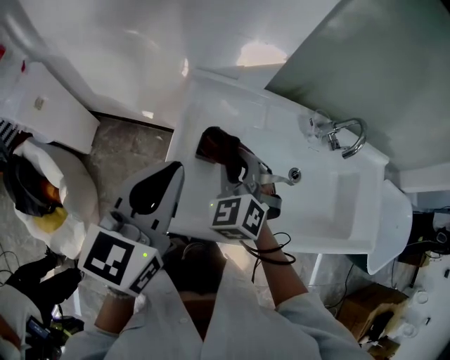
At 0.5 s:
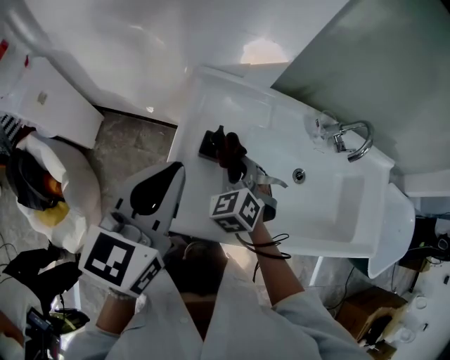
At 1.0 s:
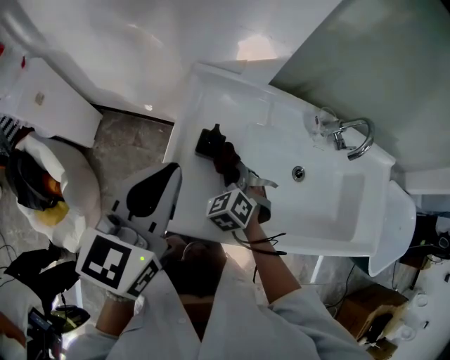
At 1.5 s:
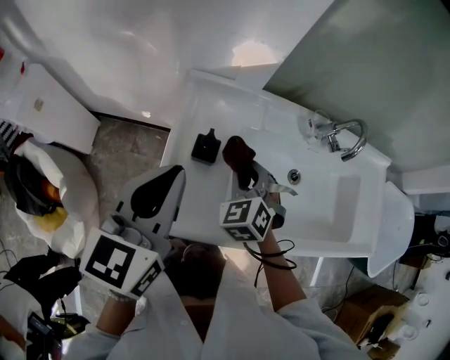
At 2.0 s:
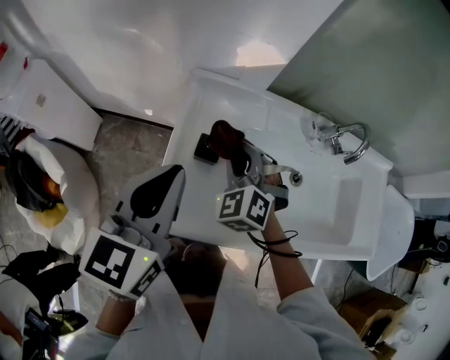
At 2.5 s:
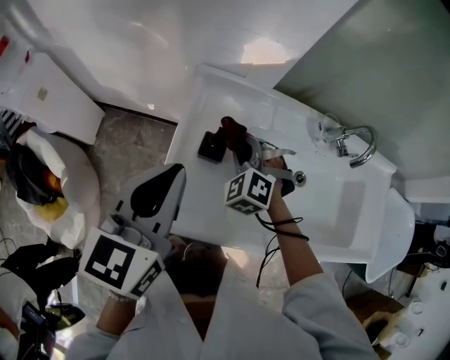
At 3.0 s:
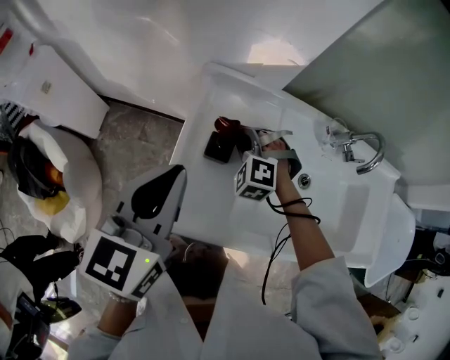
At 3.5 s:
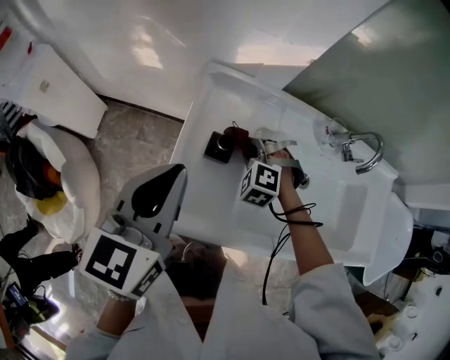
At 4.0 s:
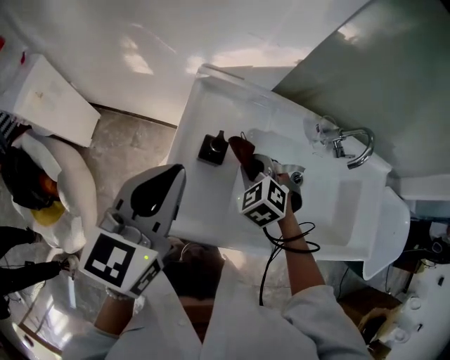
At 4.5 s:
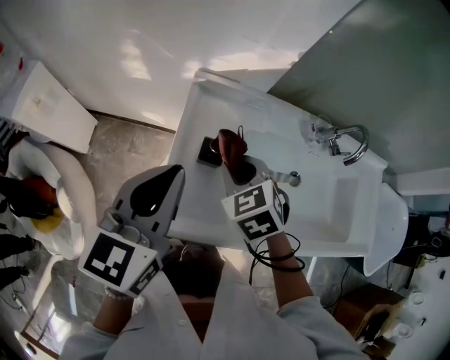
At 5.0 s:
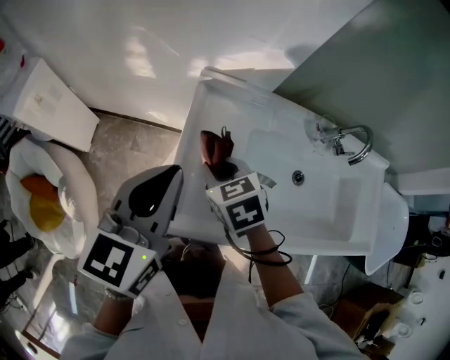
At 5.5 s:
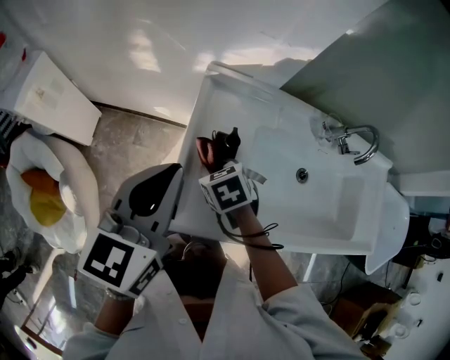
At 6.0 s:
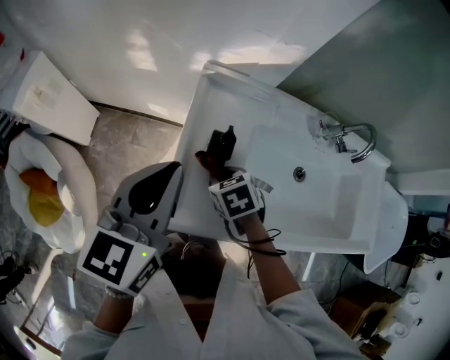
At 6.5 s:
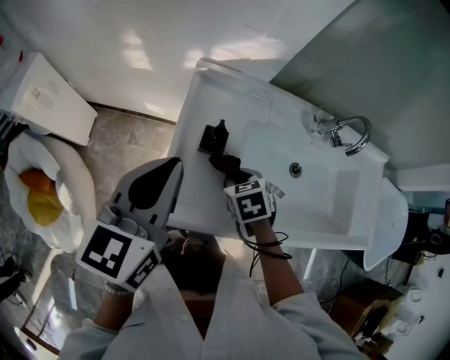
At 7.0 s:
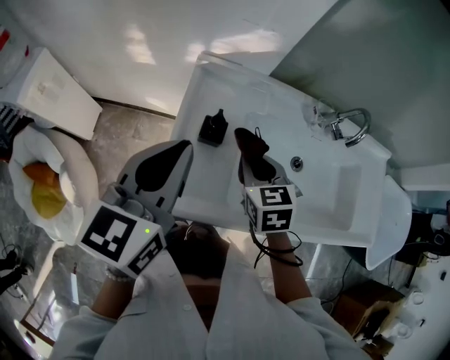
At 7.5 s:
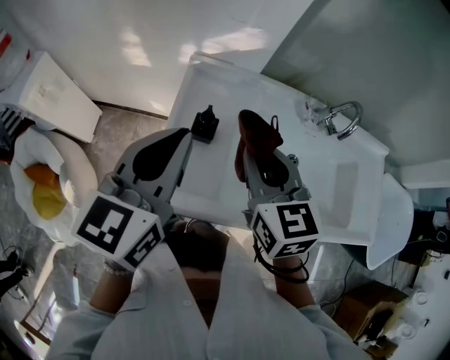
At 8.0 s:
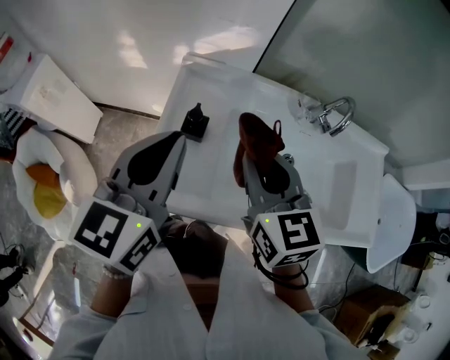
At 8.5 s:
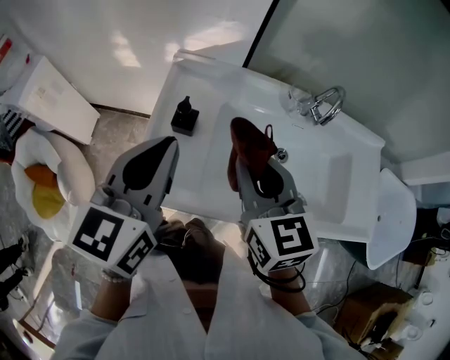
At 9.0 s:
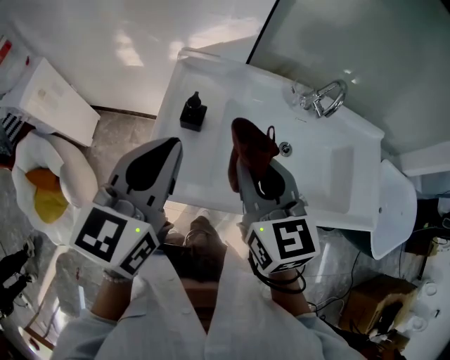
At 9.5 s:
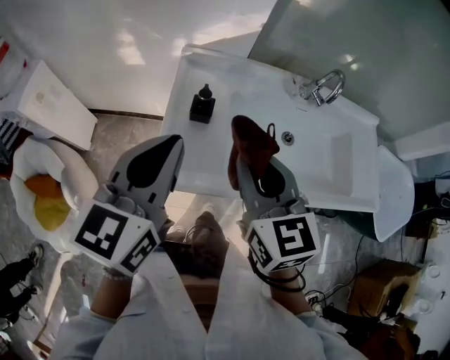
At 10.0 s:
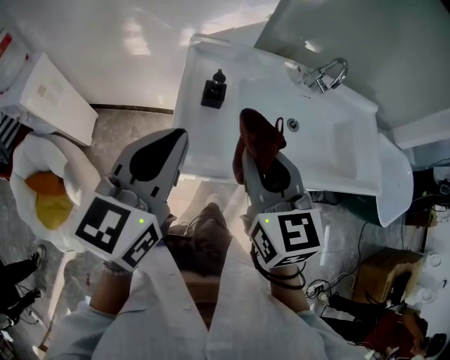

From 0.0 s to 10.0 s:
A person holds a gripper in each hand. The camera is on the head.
From 0.0 s to 2.0 s: The right gripper reaches approximately 15 cm downward, then returns.
From 2.0 s to 4.0 s: The right gripper travels downward by about 5 cm, and swivels about 20 degrees.
From 4.0 s to 6.0 s: The right gripper moves to the left, roughly 10 cm, and changes its angle by approximately 40 degrees.
From 6.0 s to 8.0 s: The left gripper travels to the right by approximately 10 cm. The right gripper moves upward and to the right, about 30 cm, and angles its fingers upward, by some 40 degrees.
From 8.0 s to 10.0 s: The grippers both shift backward and to the left by about 15 cm.

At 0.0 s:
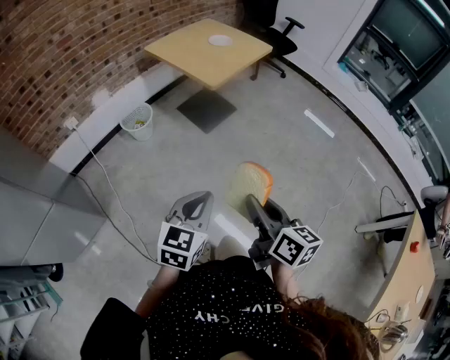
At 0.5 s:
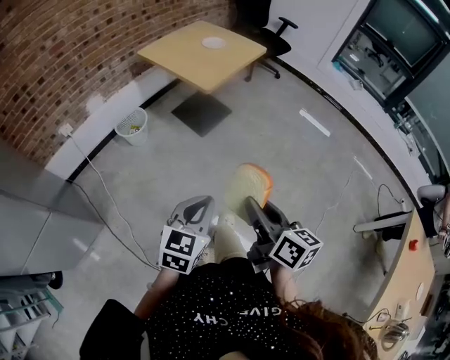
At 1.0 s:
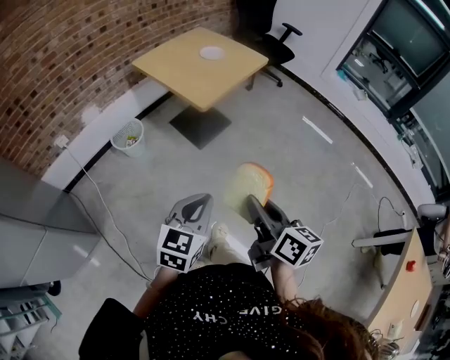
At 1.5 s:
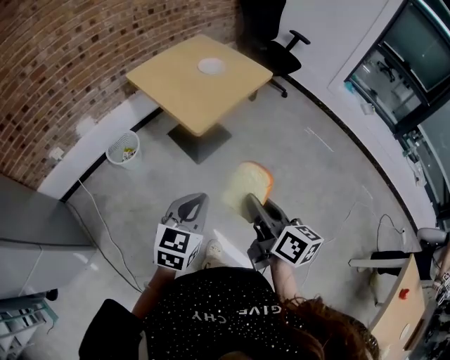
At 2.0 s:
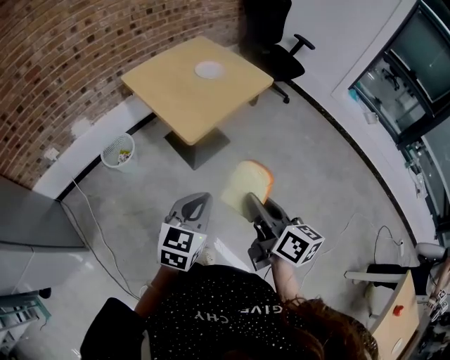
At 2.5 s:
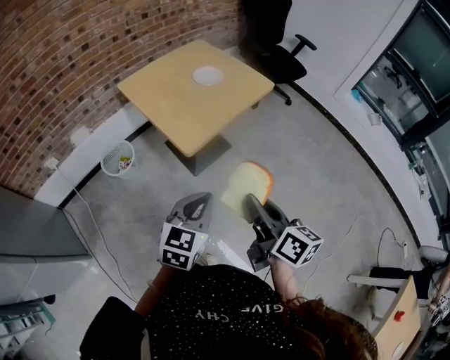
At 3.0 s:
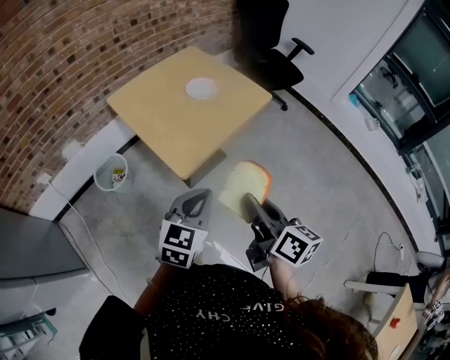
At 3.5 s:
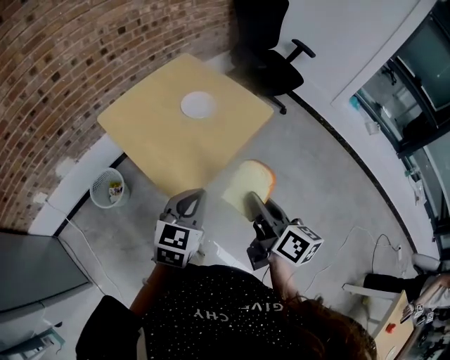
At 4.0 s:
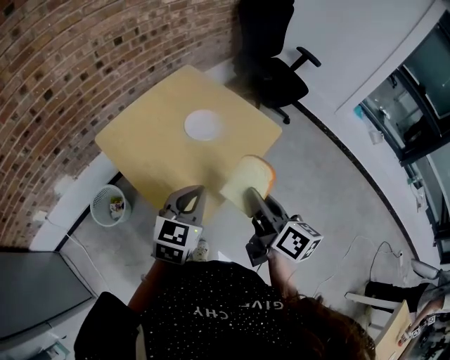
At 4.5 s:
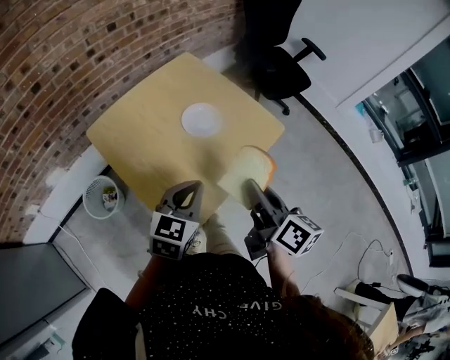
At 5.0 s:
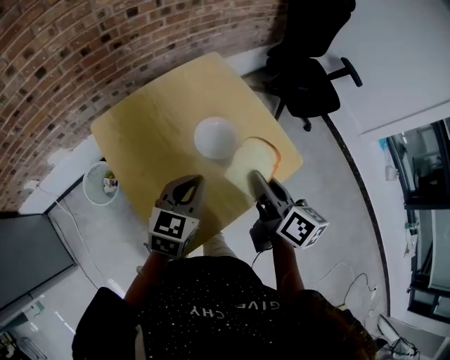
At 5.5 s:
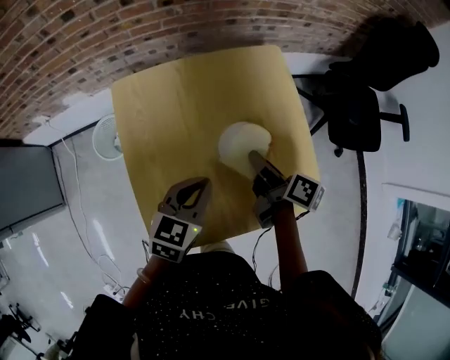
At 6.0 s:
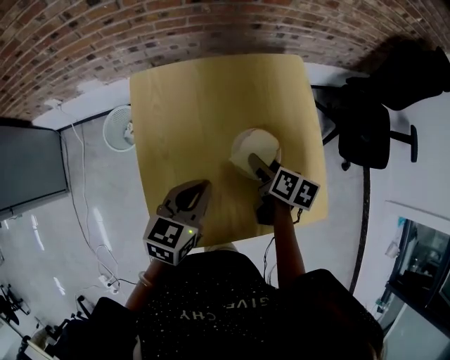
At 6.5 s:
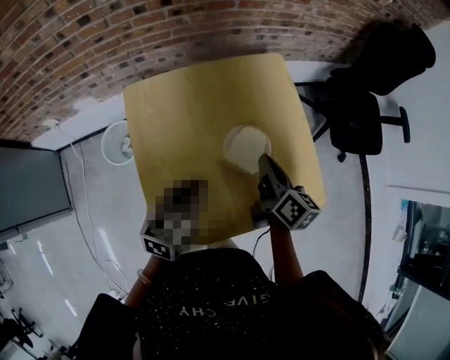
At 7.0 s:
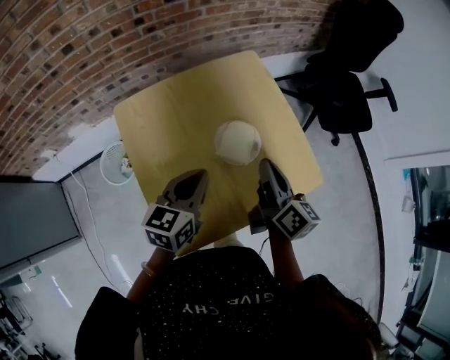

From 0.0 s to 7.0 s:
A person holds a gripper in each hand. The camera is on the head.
From 0.0 s to 2.0 s: The two grippers go some 35 cm forward.
From 2.0 s to 3.5 s: The two grippers go some 30 cm forward.
From 3.5 s to 5.0 s: Both grippers travel together forward, approximately 30 cm.
From 5.0 s to 7.0 s: The right gripper is displaced forward by approximately 5 cm, moves some 20 cm downward and comes back, and opens and closes again.

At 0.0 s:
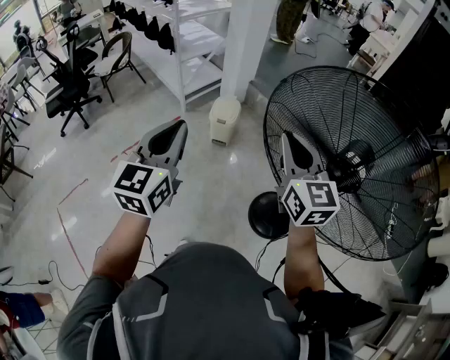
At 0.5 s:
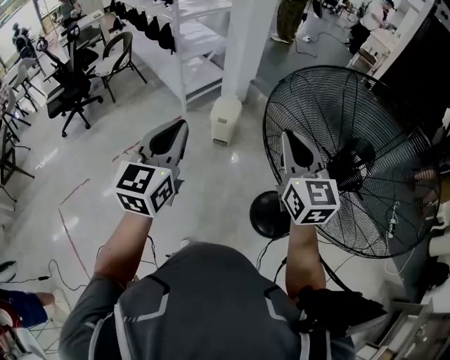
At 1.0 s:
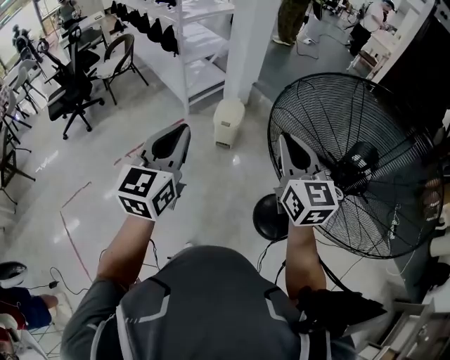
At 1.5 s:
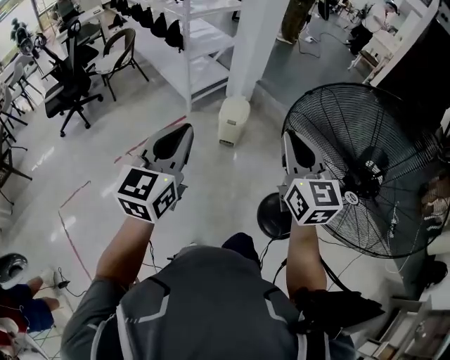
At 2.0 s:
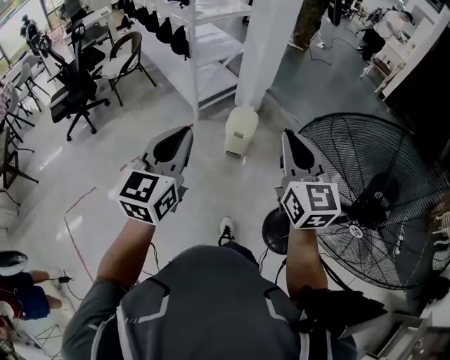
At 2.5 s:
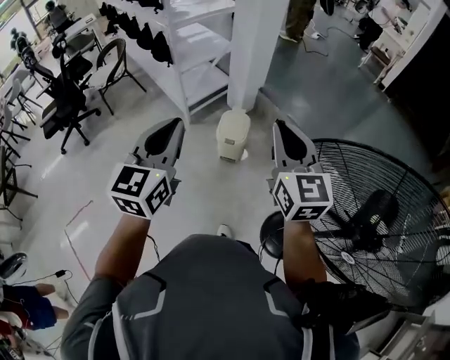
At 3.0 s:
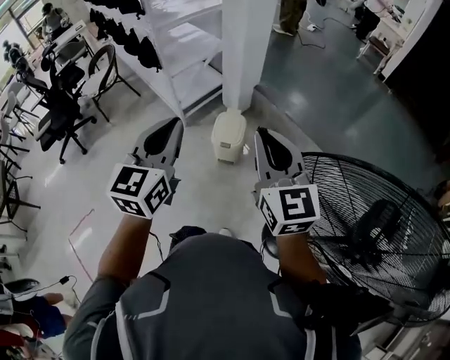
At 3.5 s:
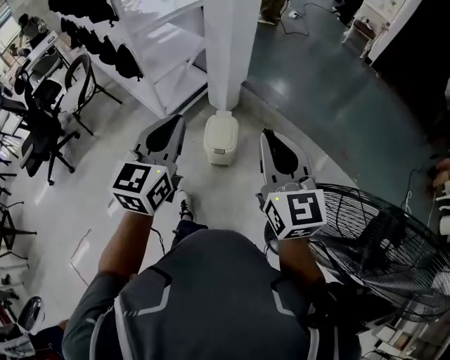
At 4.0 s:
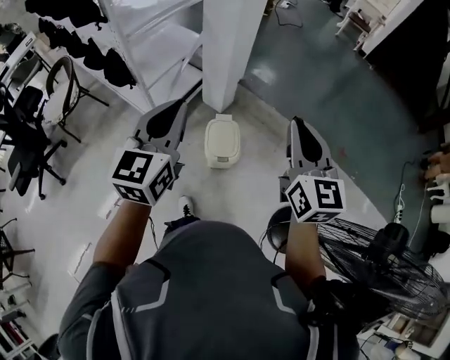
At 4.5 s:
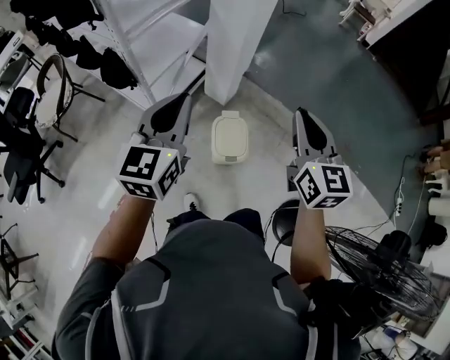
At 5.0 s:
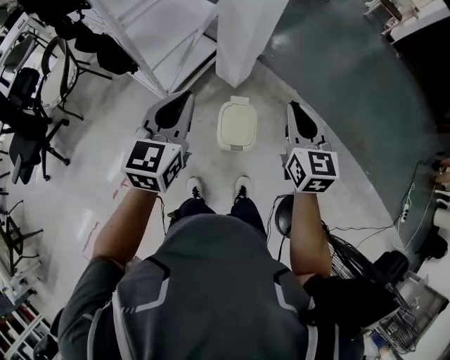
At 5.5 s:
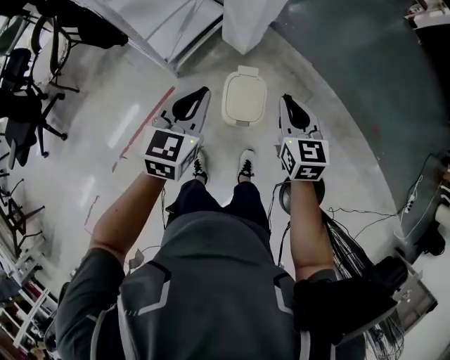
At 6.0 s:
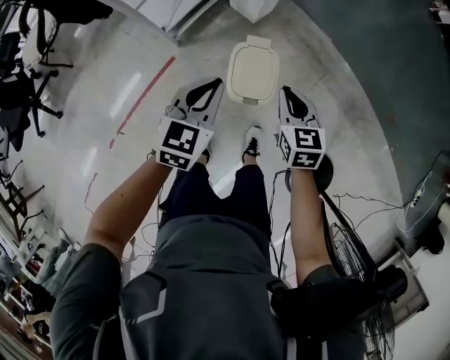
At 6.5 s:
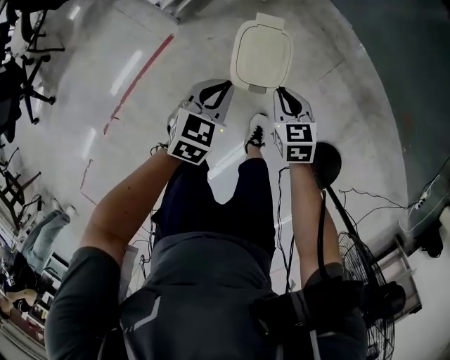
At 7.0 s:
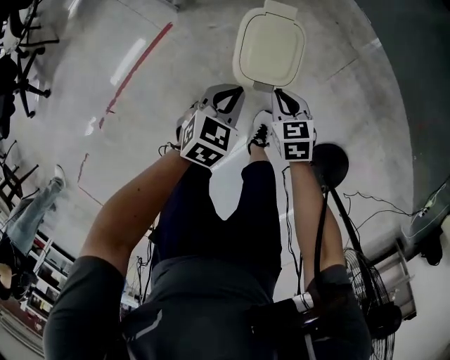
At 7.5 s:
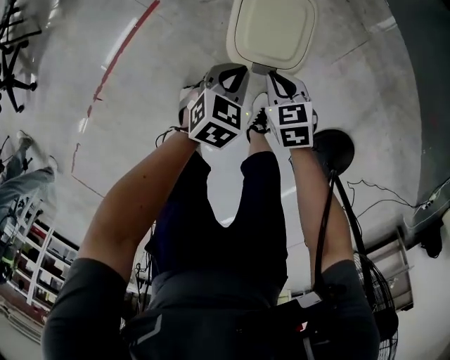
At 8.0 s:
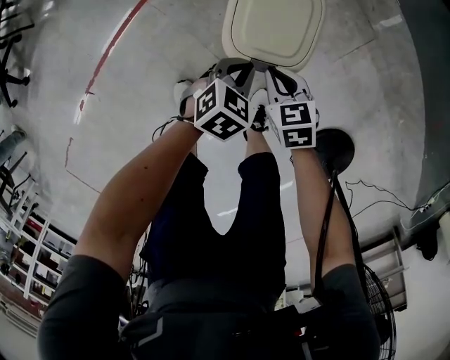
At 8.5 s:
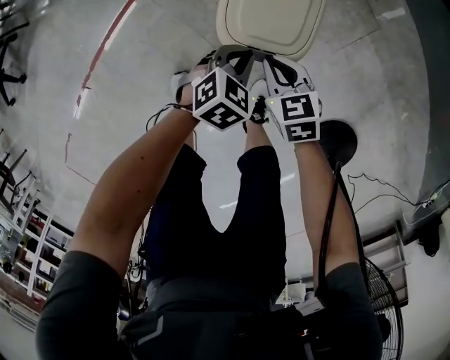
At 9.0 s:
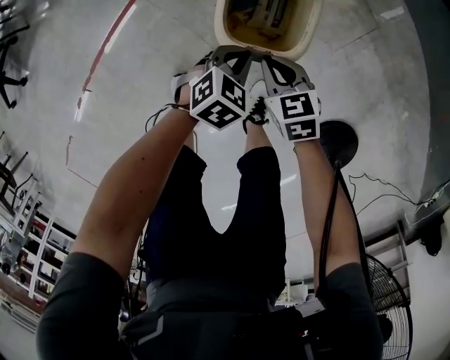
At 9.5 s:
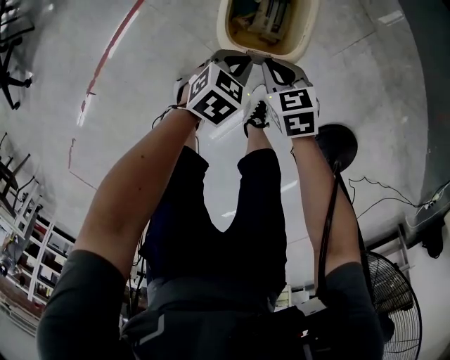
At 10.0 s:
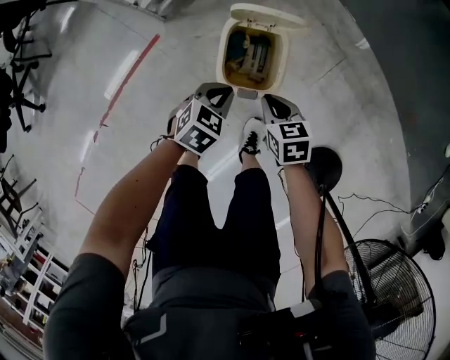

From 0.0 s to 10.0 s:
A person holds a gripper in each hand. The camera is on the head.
From 0.0 s to 2.0 s: The two grippers go roughly 15 cm forward and to the left.
From 2.0 s to 4.0 s: The pair of grippers is taken forward, some 40 cm.
From 4.0 s to 6.0 s: The grippers both shift downward and forward by approximately 40 cm. The right gripper tilts its fingers about 40 degrees downward; the left gripper rotates roughly 30 degrees.
From 6.0 s to 8.0 s: Both grippers travel together downward, approximately 40 cm. The left gripper rotates about 30 degrees. The right gripper rotates some 30 degrees.
From 8.0 s to 10.0 s: The two grippers go roughly 10 cm upward.
